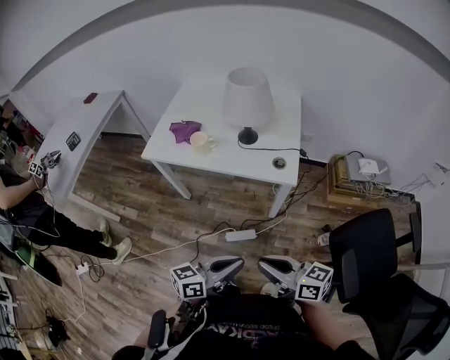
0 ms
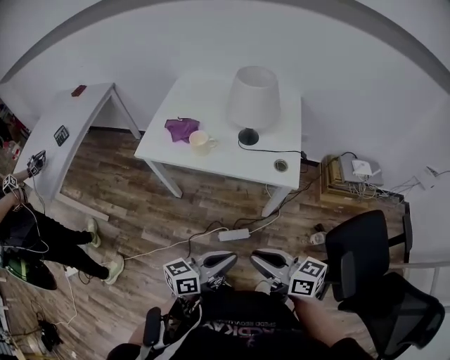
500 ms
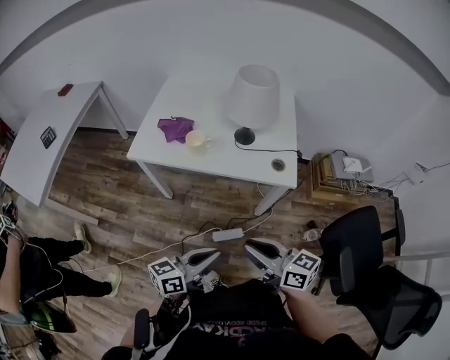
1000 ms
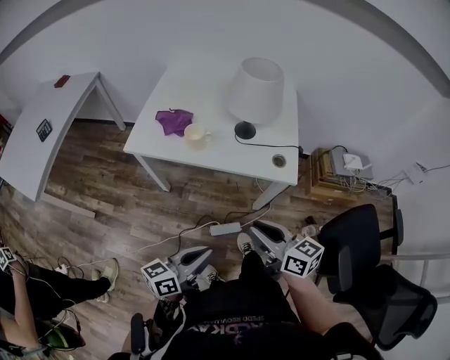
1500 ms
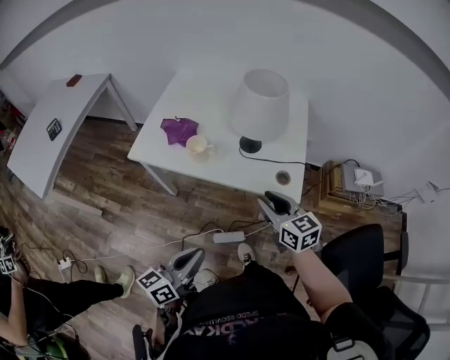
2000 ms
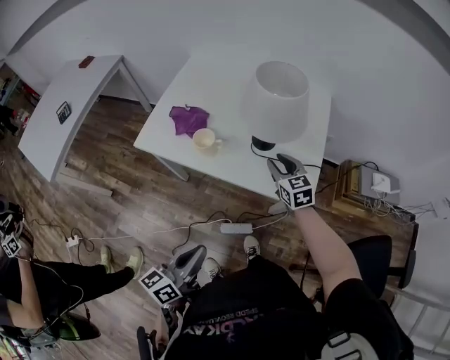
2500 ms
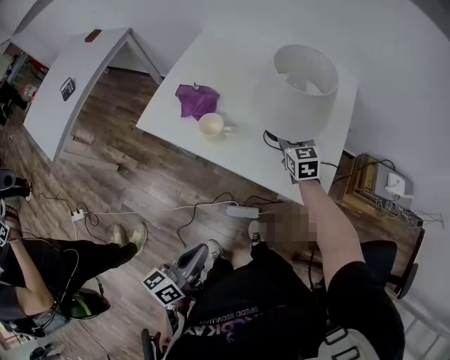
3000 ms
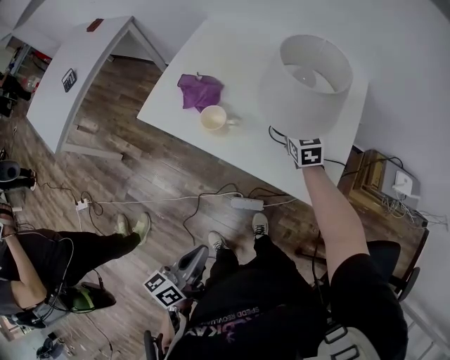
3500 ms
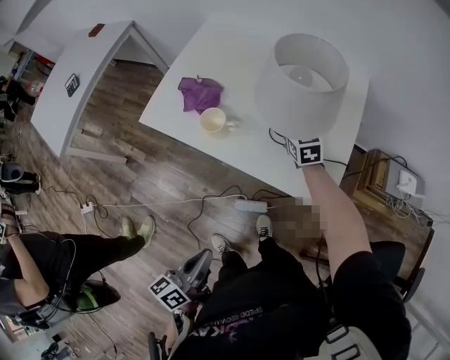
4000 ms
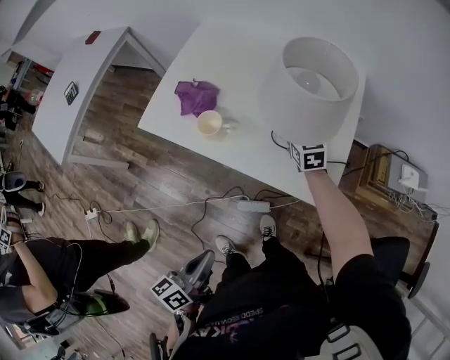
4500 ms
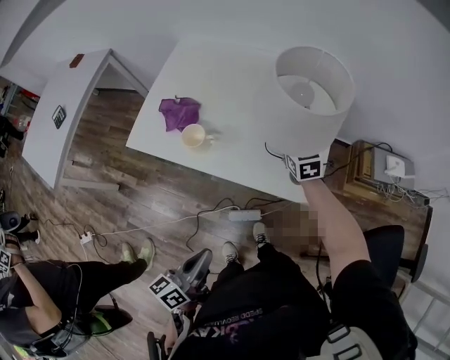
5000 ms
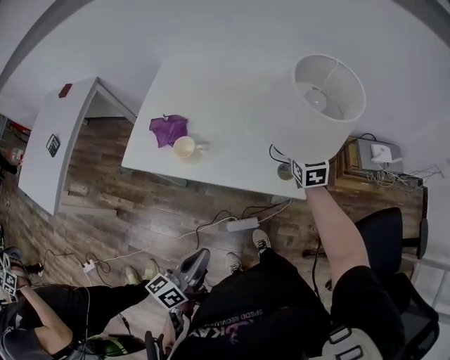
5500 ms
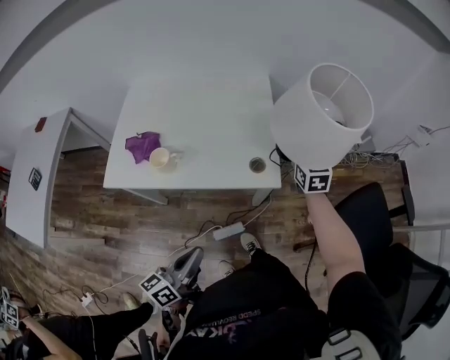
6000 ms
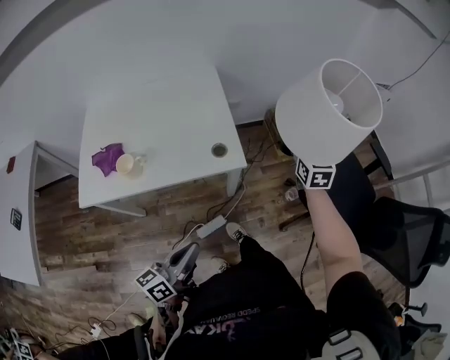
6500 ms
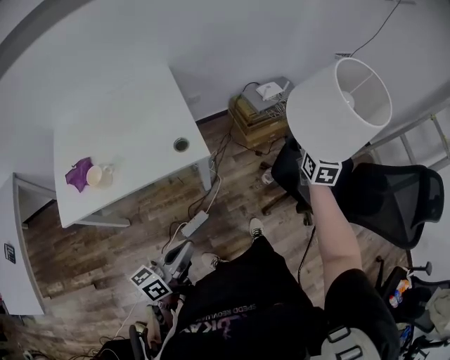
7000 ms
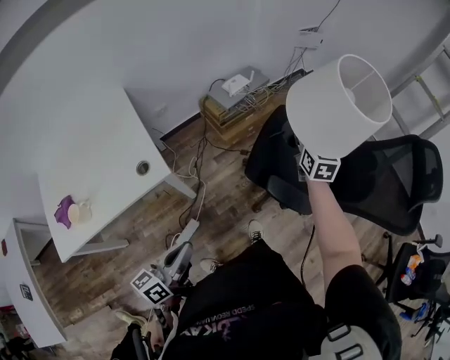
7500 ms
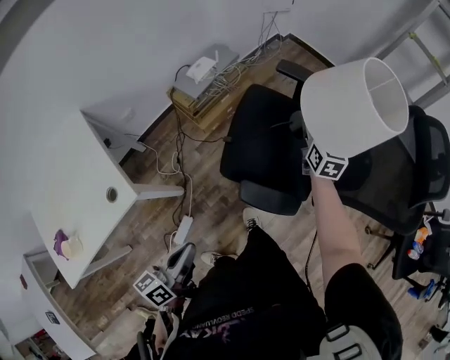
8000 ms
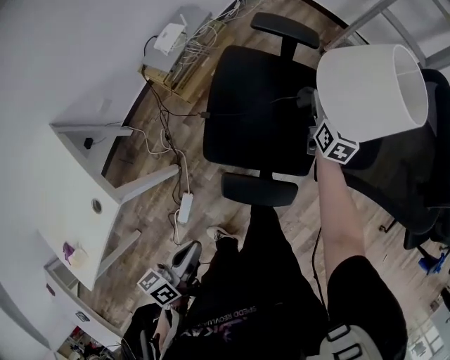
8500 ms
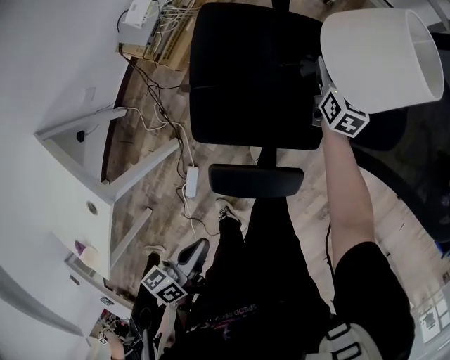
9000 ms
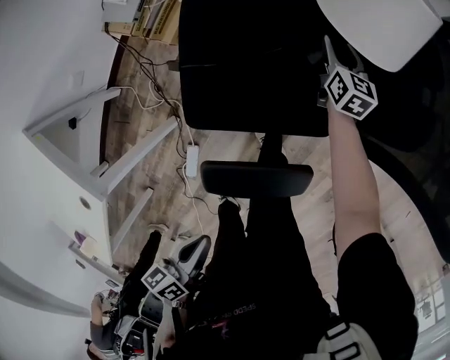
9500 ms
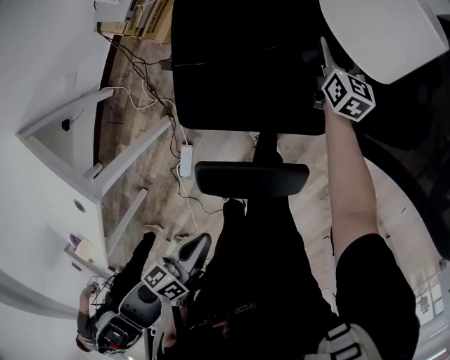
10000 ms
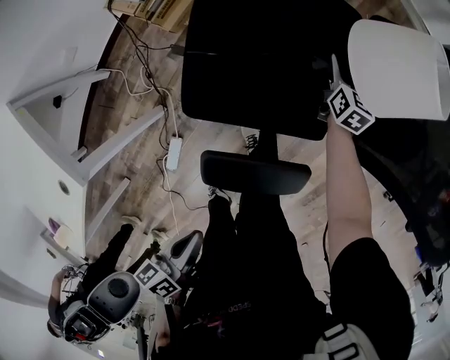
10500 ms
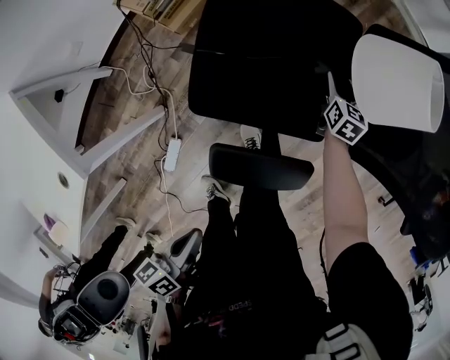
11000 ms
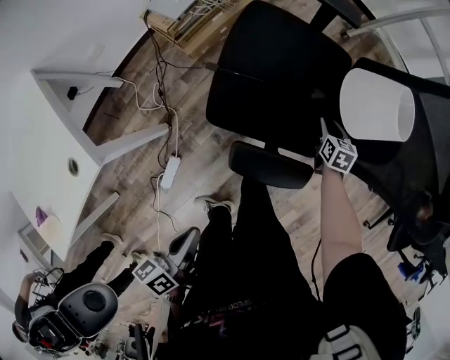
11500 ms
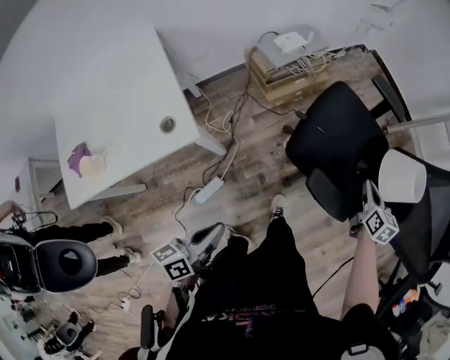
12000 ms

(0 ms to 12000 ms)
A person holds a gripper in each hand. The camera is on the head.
0 ms - 2000 ms: The right gripper is displaced forward by some 30 cm, changes its angle by roughly 30 degrees, and opens its fingers. The left gripper is displaced to the left and forward by about 20 cm, and swivels about 20 degrees.
2000 ms - 4000 ms: The left gripper travels downward by approximately 5 cm, and rotates approximately 30 degrees. The right gripper moves forward, some 30 cm.
4000 ms - 6000 ms: The right gripper ends up roughly 35 cm from where it was, and turns by some 30 degrees. Meanwhile the left gripper ends up about 5 cm from where it was, and swivels approximately 30 degrees.
6000 ms - 8000 ms: The right gripper shifts by roughly 70 cm, and changes its angle by approximately 60 degrees. The left gripper changes place by about 35 cm, and rotates roughly 40 degrees.
8000 ms - 10000 ms: The right gripper heads downward, covering some 35 cm, and changes its angle by roughly 20 degrees; the left gripper heads downward, to the right and forward, covering approximately 20 cm, and rotates roughly 30 degrees.
10000 ms - 12000 ms: The right gripper is displaced upward by some 20 cm, changes its angle by approximately 20 degrees, and closes its fingers; the left gripper ends up roughly 20 cm from where it was, and swivels some 40 degrees.

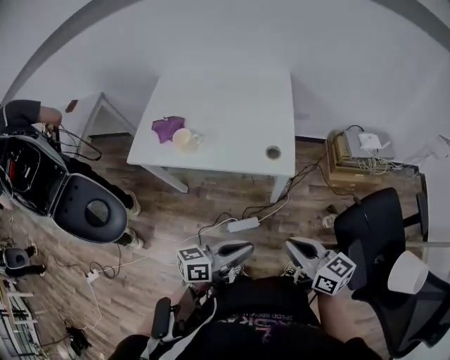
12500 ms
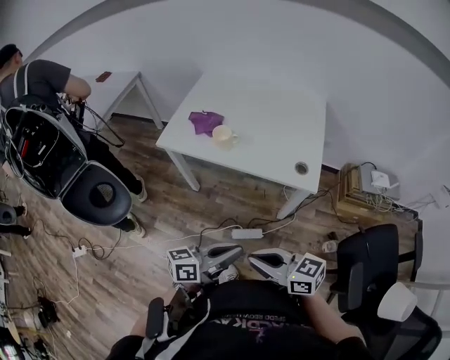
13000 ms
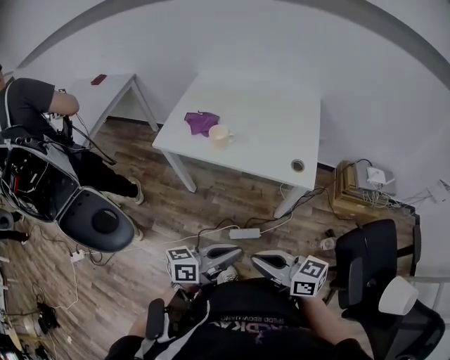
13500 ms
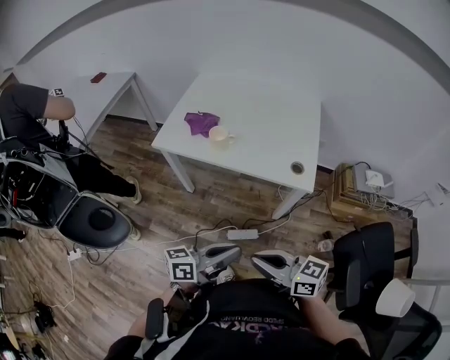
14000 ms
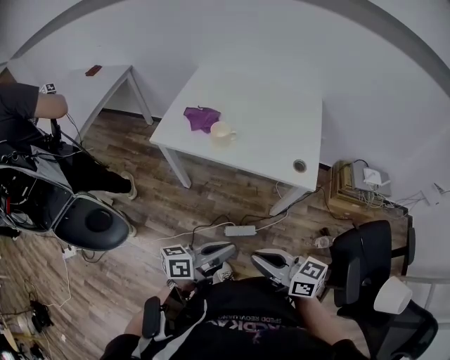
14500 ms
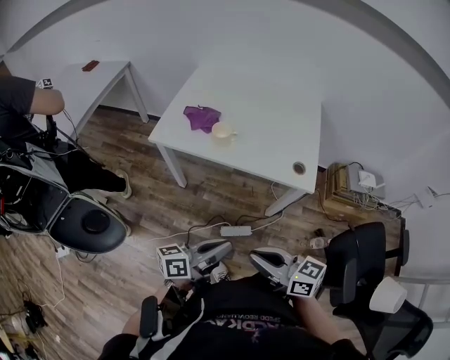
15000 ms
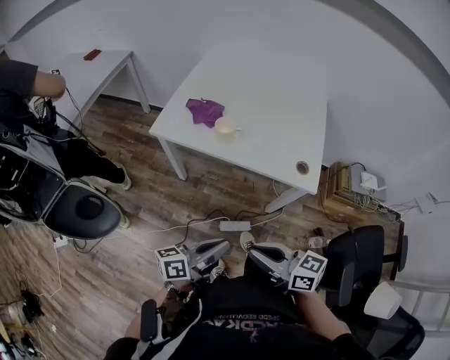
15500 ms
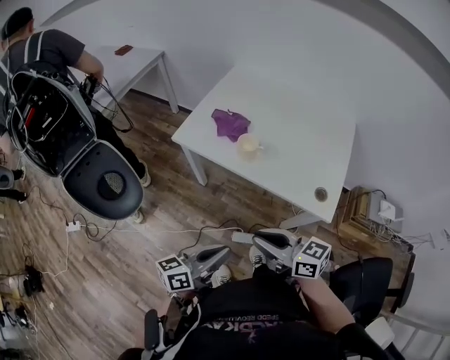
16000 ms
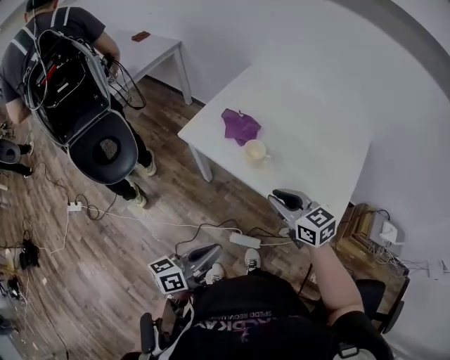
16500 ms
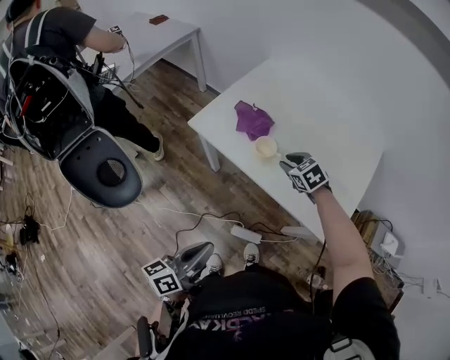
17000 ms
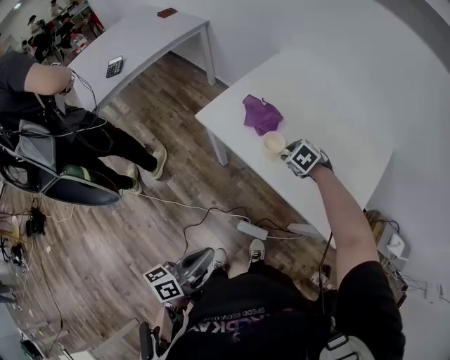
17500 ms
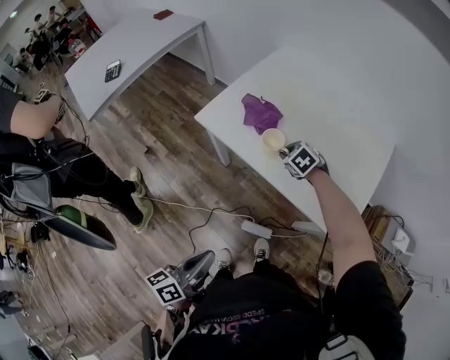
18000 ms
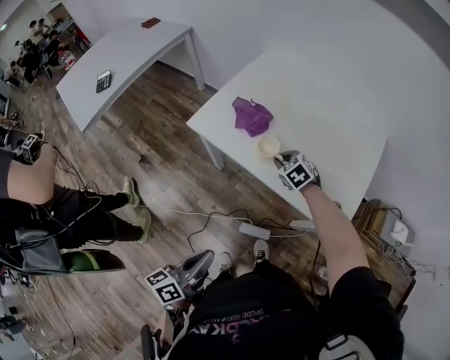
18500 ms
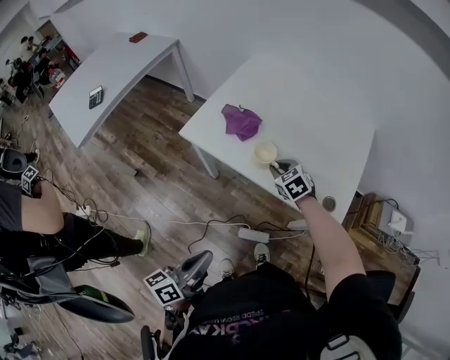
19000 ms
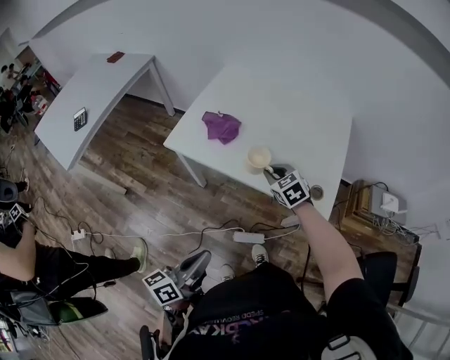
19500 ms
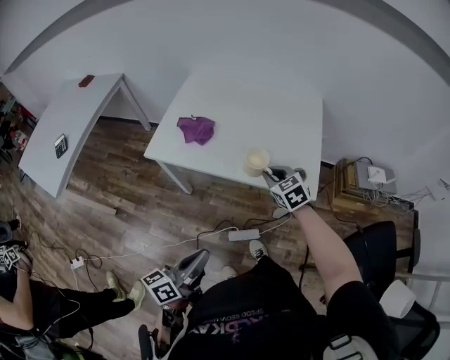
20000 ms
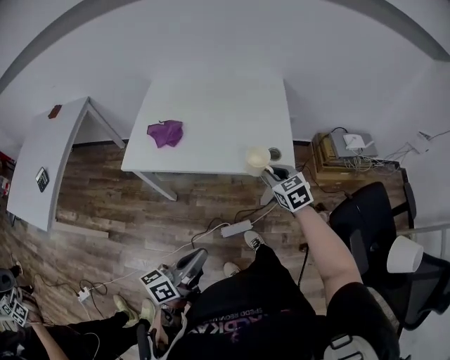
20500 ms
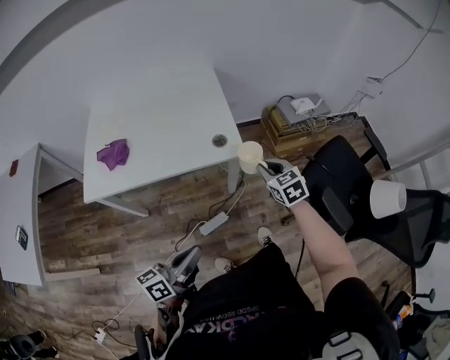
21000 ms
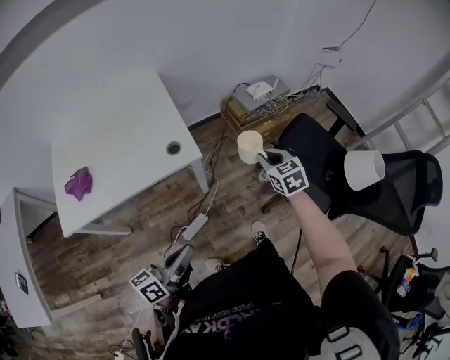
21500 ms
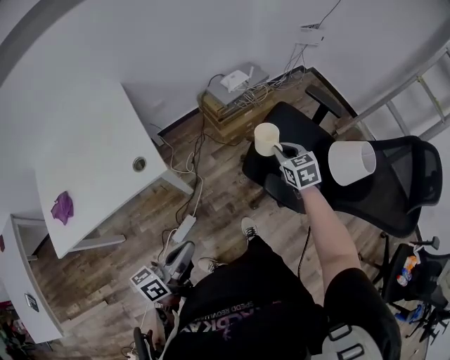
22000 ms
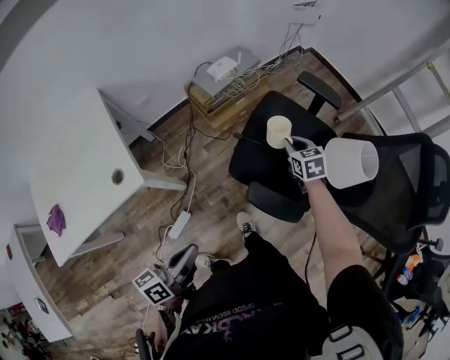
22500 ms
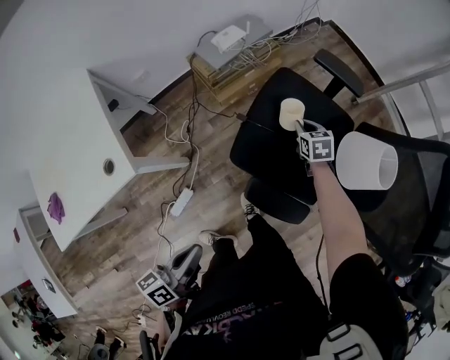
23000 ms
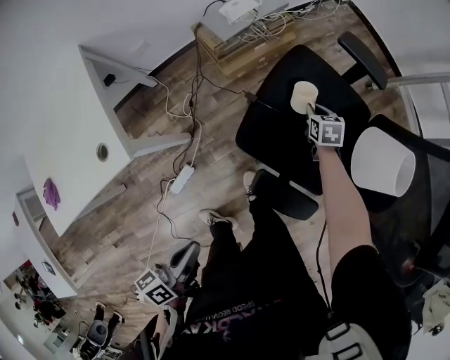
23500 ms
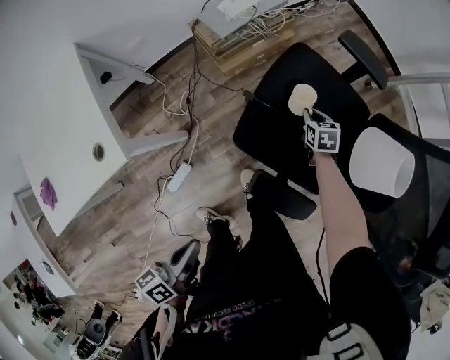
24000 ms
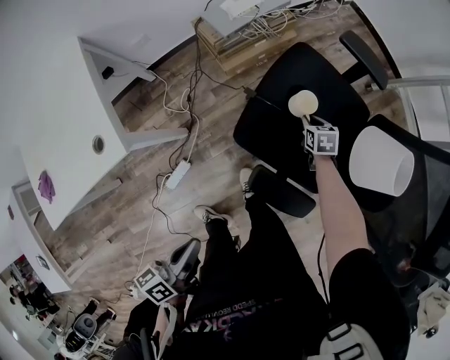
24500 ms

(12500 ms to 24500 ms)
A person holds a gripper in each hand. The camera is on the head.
12500 ms - 14500 ms: The left gripper moves approximately 15 cm. The right gripper moves some 20 cm, and rotates roughly 20 degrees.
14500 ms - 16500 ms: The left gripper goes about 10 cm forward, and swivels some 30 degrees. Meanwhile the right gripper is displaced forward by approximately 30 cm, and turns by about 30 degrees.
16500 ms - 18500 ms: The right gripper moves downward and forward, some 20 cm, and changes its angle by about 40 degrees.
18500 ms - 20500 ms: The left gripper moves approximately 5 cm, and swivels some 40 degrees. The right gripper ends up some 30 cm from where it was, and swivels approximately 40 degrees.
20500 ms - 22500 ms: Both grippers are carried some 50 cm. The right gripper swivels about 50 degrees. The left gripper rotates some 40 degrees.
22500 ms - 24500 ms: The left gripper moves downward, roughly 5 cm, while the right gripper goes about 20 cm downward.

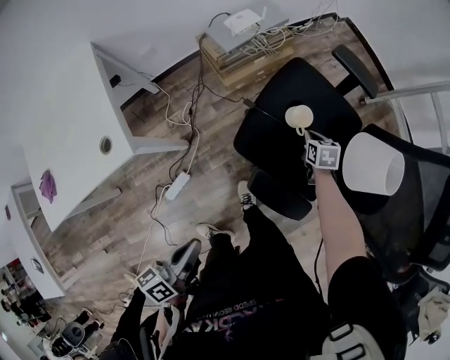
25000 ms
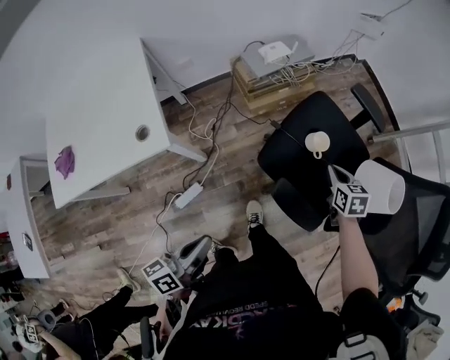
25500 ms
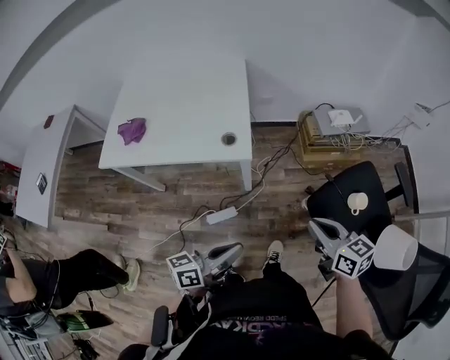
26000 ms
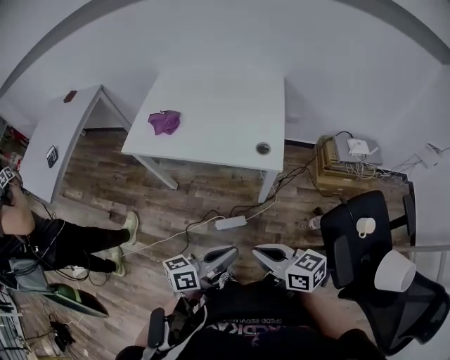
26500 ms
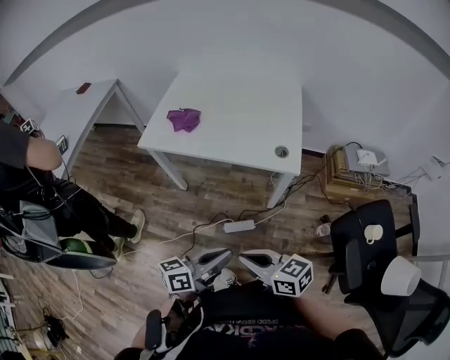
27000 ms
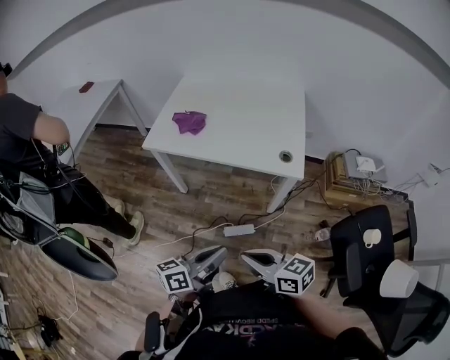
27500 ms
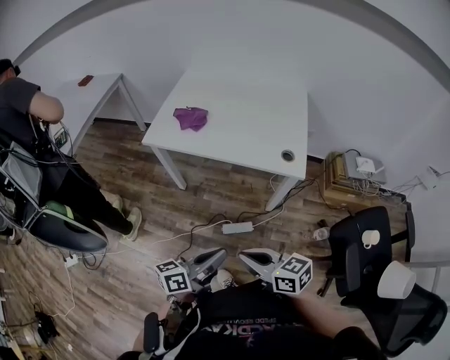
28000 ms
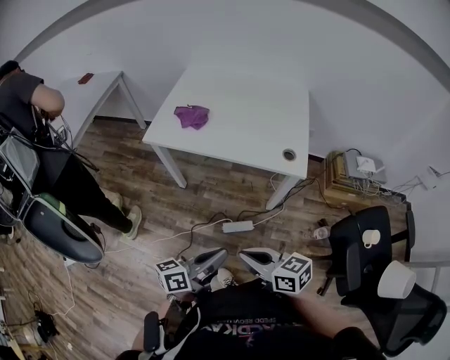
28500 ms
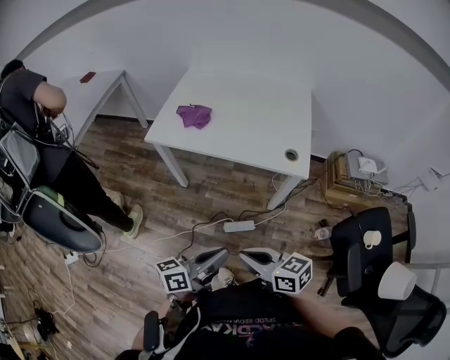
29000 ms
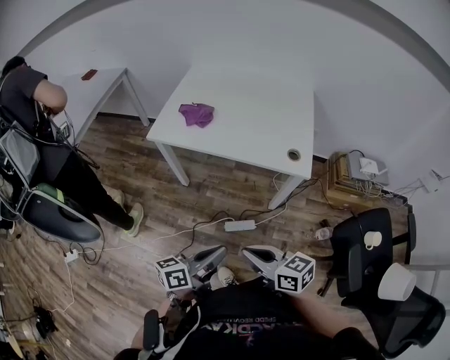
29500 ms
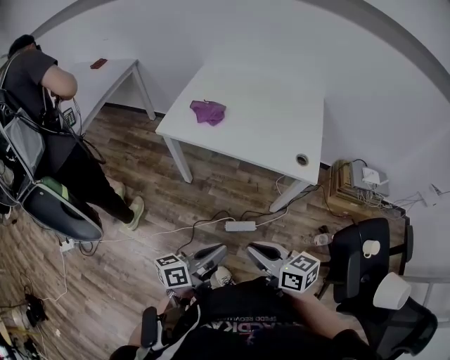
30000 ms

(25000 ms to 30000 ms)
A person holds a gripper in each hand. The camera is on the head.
25000 ms - 27500 ms: The left gripper changes place by roughly 35 cm, and changes its angle by some 30 degrees; the right gripper shifts by some 80 cm, and angles its fingers upward, by approximately 40 degrees.
27500 ms - 30000 ms: The left gripper shifts by about 5 cm.
